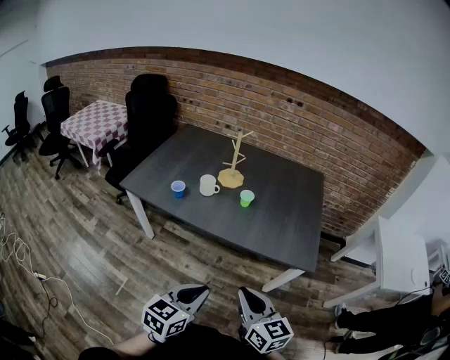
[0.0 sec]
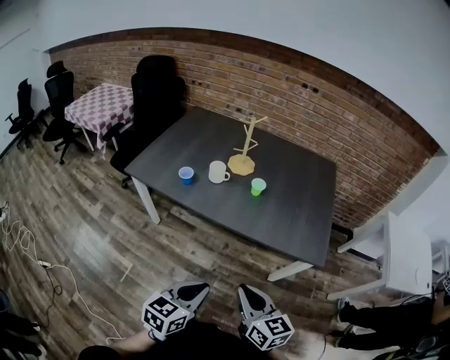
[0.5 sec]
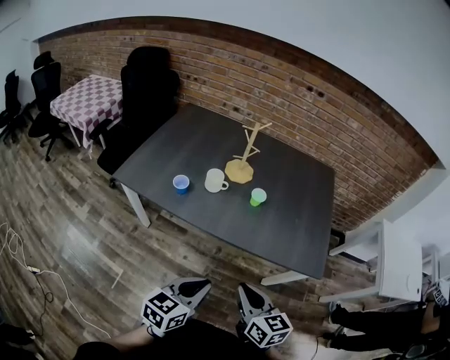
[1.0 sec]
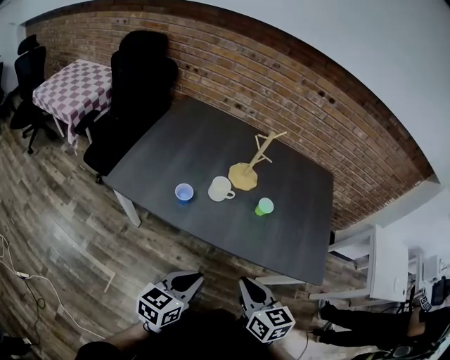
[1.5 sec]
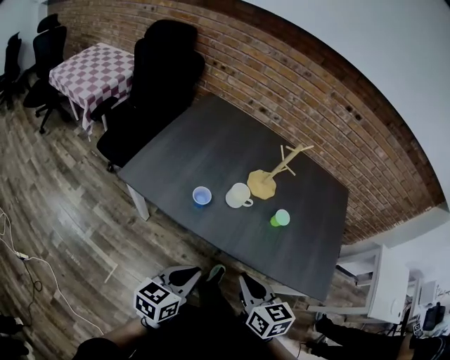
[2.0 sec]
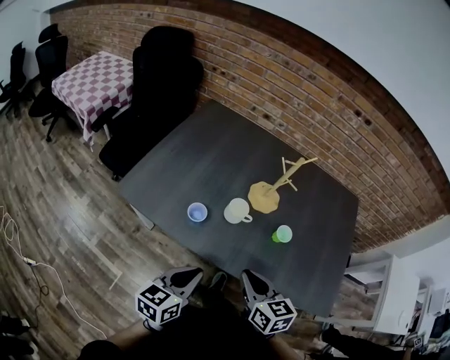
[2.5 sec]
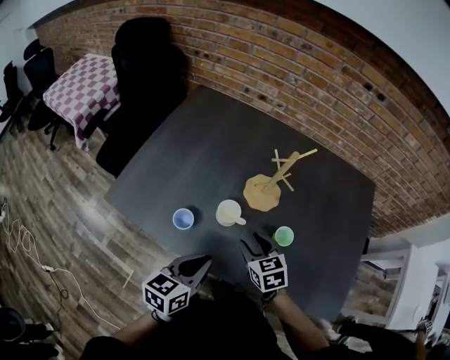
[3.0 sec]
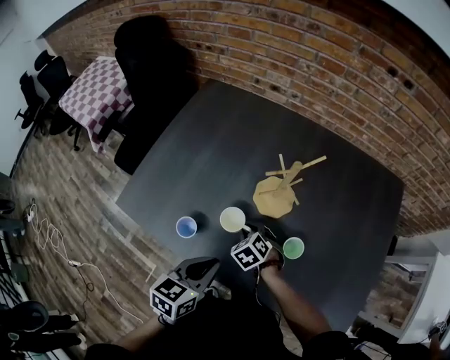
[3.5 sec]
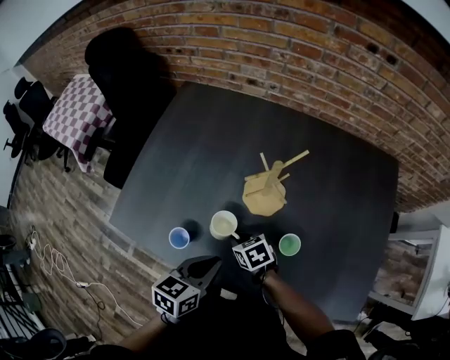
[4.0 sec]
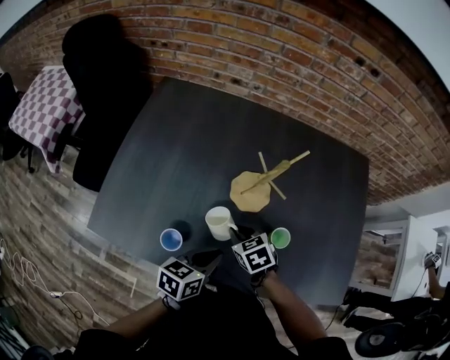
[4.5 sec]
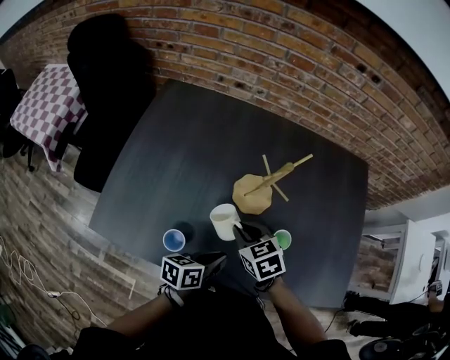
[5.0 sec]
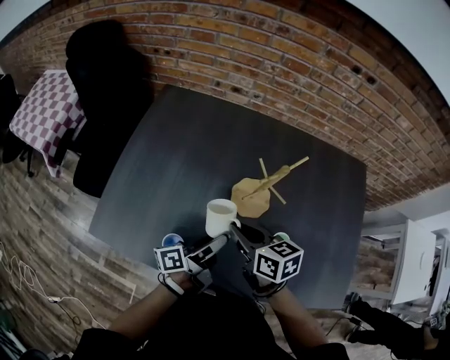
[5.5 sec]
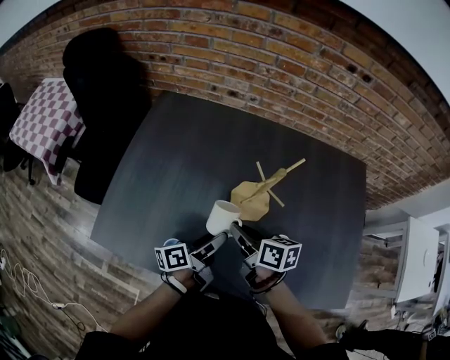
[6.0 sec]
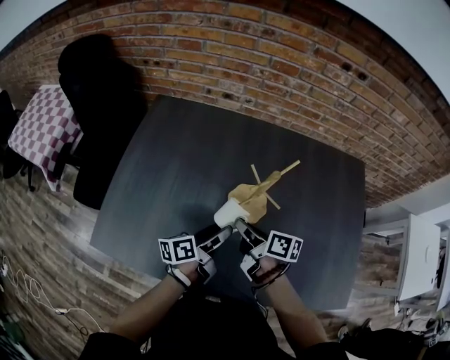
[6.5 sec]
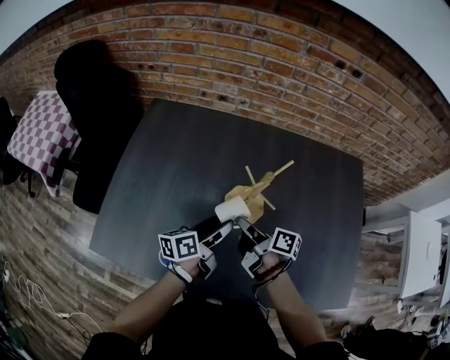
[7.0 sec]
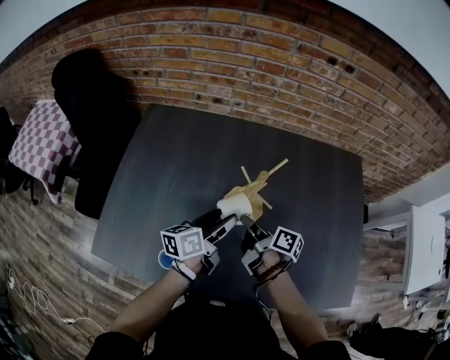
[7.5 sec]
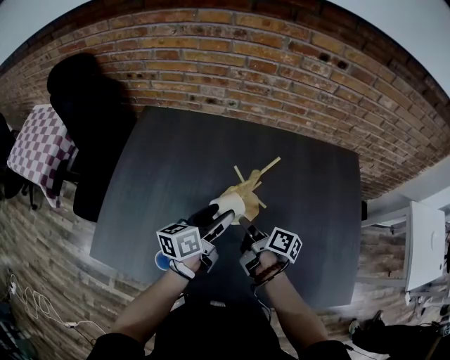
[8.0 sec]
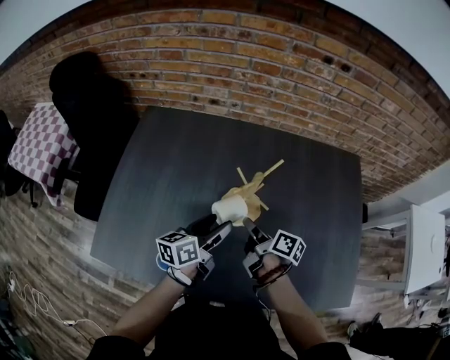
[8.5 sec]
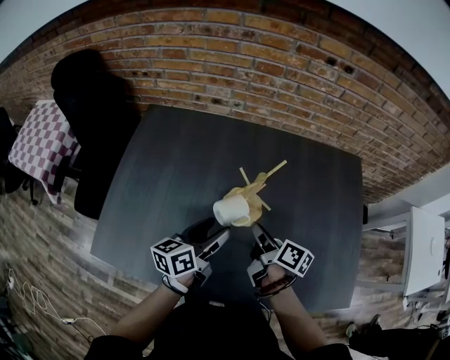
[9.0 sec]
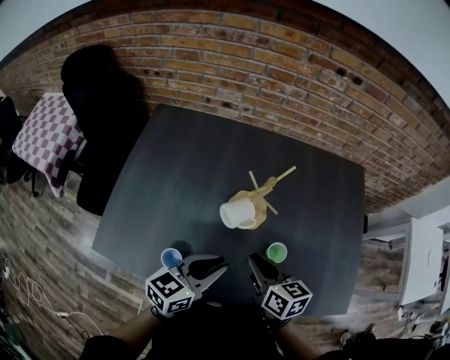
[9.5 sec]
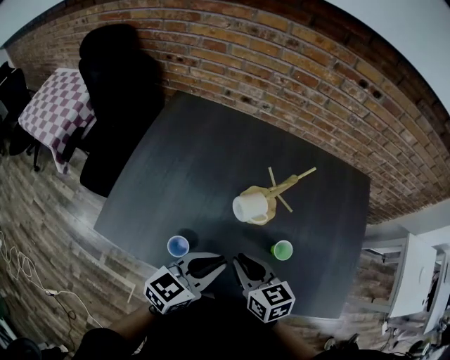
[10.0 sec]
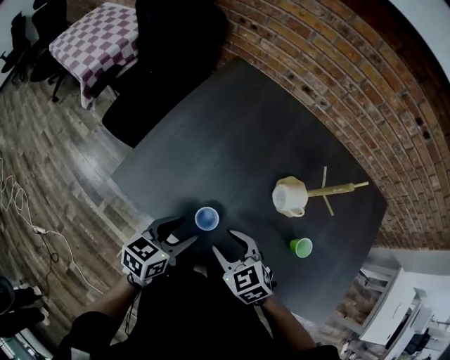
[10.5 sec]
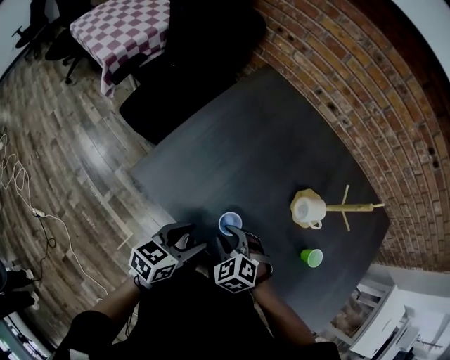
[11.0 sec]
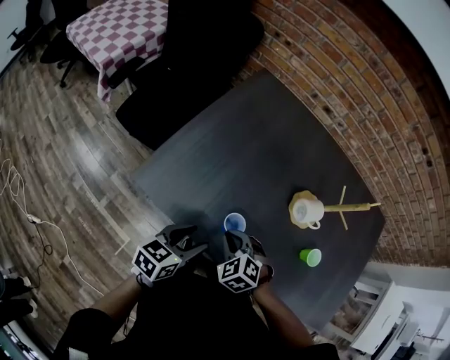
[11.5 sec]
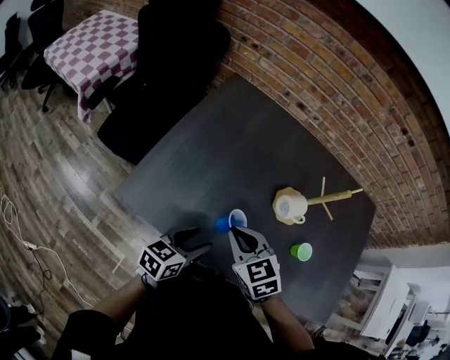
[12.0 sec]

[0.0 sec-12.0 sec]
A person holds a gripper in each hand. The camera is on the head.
0.0 sec to 2.0 sec: The right gripper heads forward and to the left, covering some 35 cm, while the left gripper goes roughly 35 cm to the left and forward.
2.0 sec to 4.0 sec: The right gripper shifts some 40 cm forward and downward, swivels roughly 30 degrees, and opens, then closes again. The left gripper is displaced forward and to the right by about 30 cm.
4.0 sec to 6.0 sec: The left gripper is displaced forward by about 10 cm, angles its fingers upward, by approximately 30 degrees, and opens up; the right gripper travels upward by about 15 cm, and turns by roughly 40 degrees.
6.0 sec to 8.0 sec: The left gripper is displaced forward, upward and to the right by roughly 10 cm, and turns by about 30 degrees. Meanwhile the right gripper heads to the right, covering roughly 10 cm, and swivels roughly 30 degrees.
8.0 sec to 10.0 sec: The right gripper heads backward, upward and to the left, covering approximately 20 cm, and twists some 60 degrees counterclockwise, seen from behind, while the left gripper travels backward by some 15 cm, changes its angle by approximately 30 degrees, and closes up.
10.0 sec to 12.0 sec: The left gripper heads to the left and downward, covering roughly 25 cm, turns by approximately 20 degrees, and opens up. Meanwhile the right gripper is displaced to the left by about 20 cm, changes its angle by approximately 30 degrees, and opens and closes again.

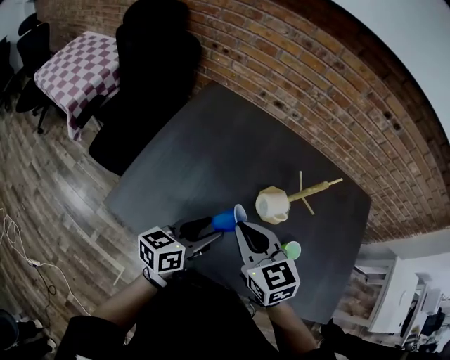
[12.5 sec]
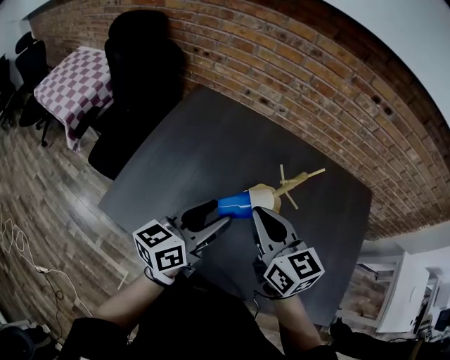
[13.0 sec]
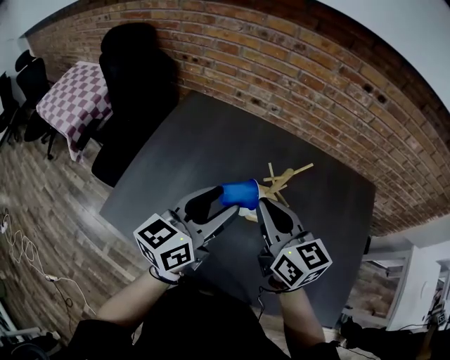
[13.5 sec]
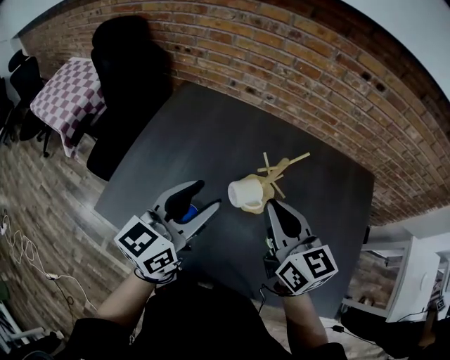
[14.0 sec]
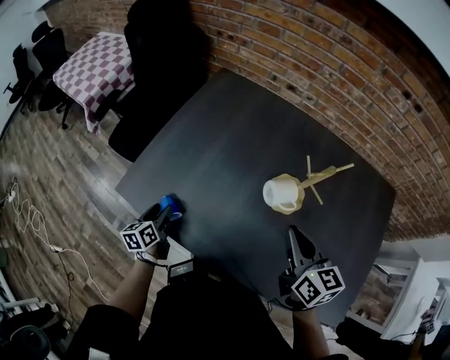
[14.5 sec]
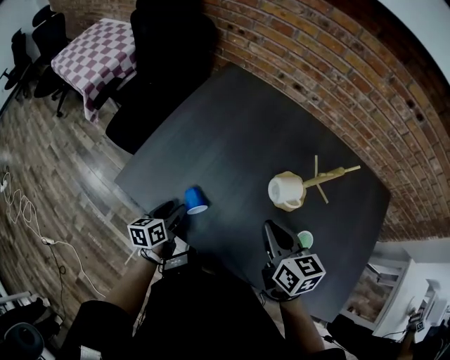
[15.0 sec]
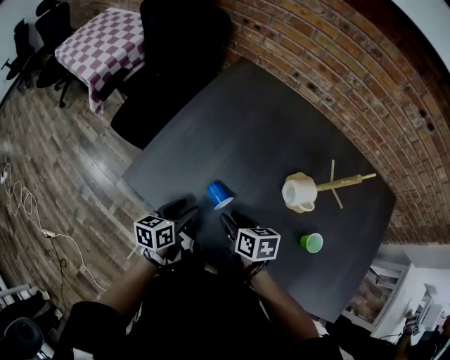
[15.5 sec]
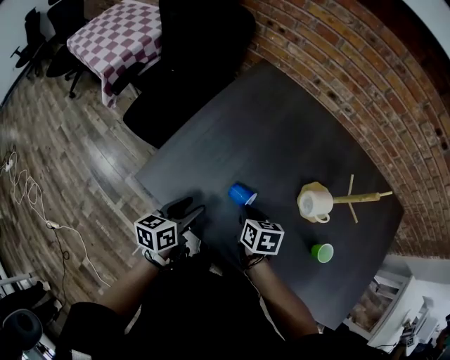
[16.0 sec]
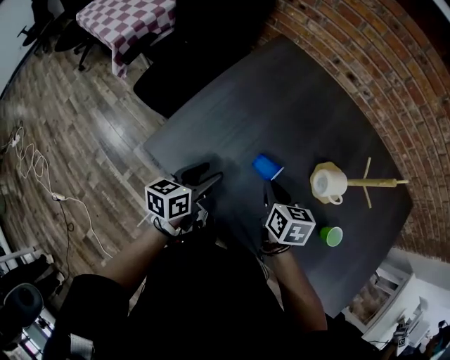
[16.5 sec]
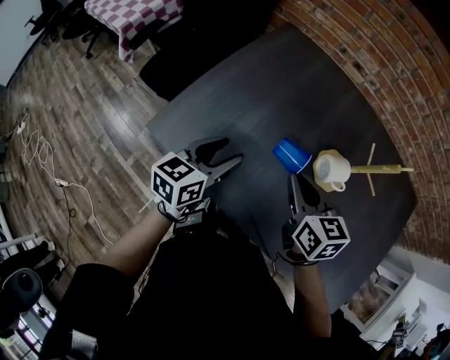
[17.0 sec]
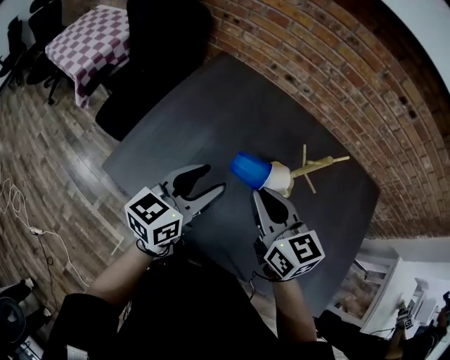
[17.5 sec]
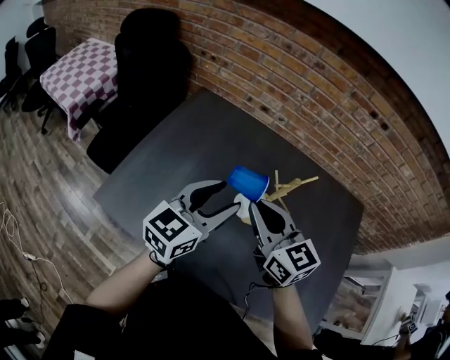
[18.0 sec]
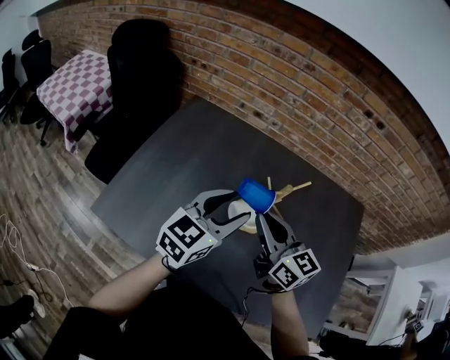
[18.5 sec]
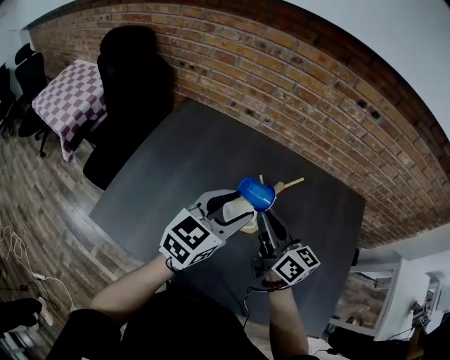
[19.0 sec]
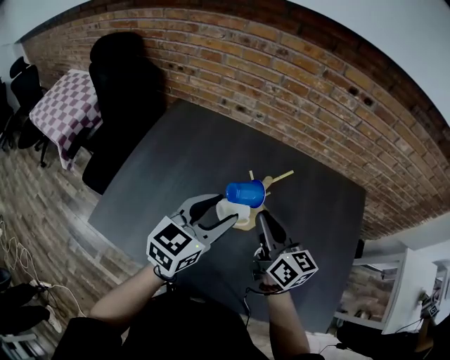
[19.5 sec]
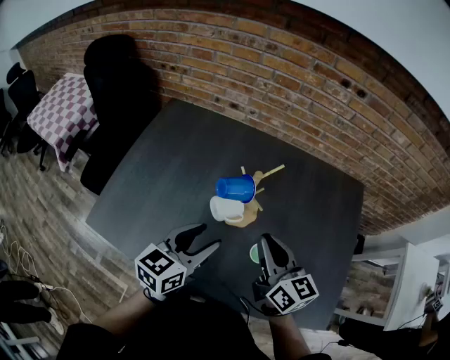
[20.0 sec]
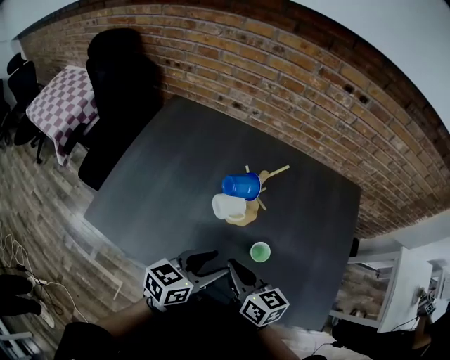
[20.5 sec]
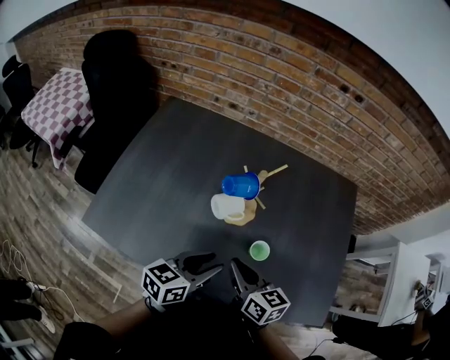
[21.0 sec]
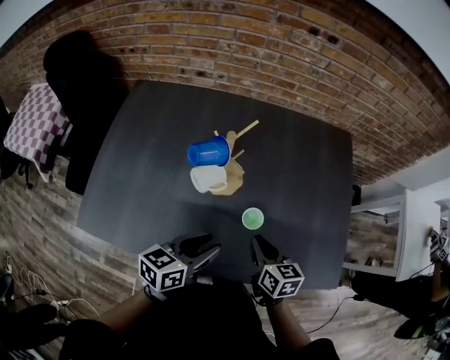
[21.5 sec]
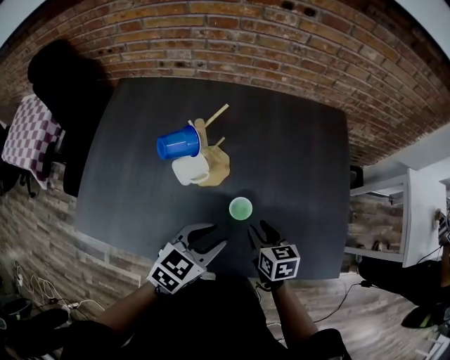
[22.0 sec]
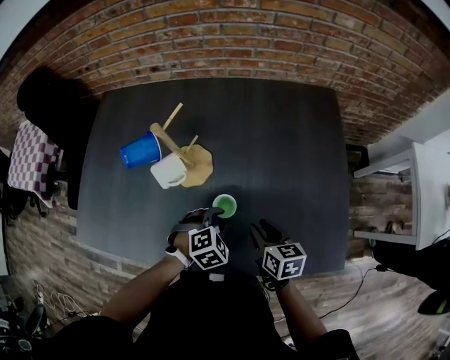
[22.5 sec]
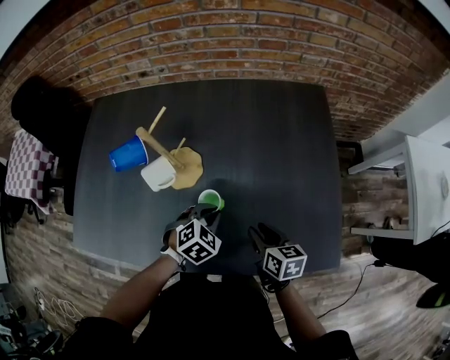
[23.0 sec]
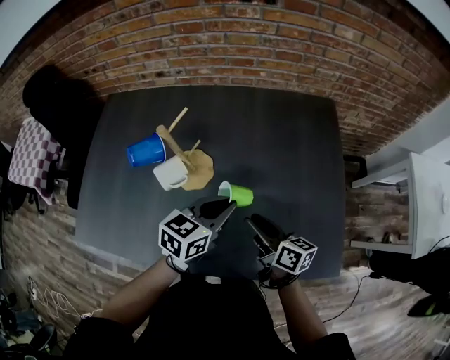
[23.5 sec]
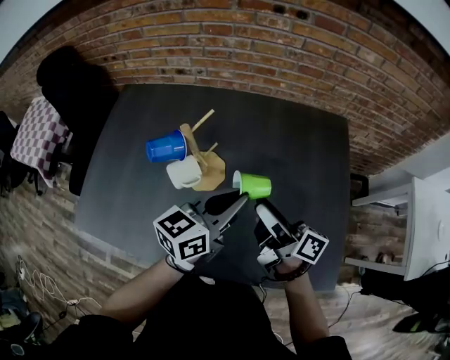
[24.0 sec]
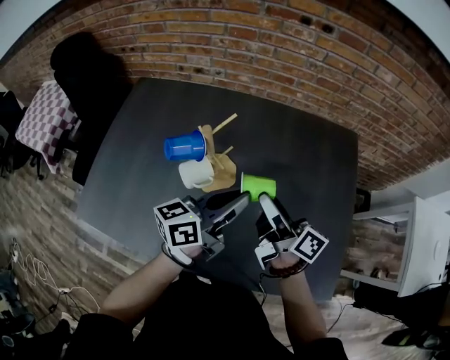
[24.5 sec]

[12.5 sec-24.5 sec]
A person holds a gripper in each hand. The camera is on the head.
12.5 sec to 14.5 sec: The right gripper moves to the right, roughly 20 cm, and rotates about 30 degrees. Meanwhile the left gripper shifts about 25 cm downward and to the left, and changes its angle by some 50 degrees.
14.5 sec to 16.5 sec: The left gripper heads upward, covering some 5 cm, and turns by approximately 20 degrees, while the right gripper is displaced to the left, downward and forward by approximately 25 cm, swivels roughly 20 degrees, and opens, then closes once more.
16.5 sec to 18.5 sec: The left gripper shifts some 35 cm to the right and upward, and swivels about 40 degrees, while the right gripper travels upward and to the right by some 30 cm, and points its fingers some 40 degrees further upward.
18.5 sec to 20.5 sec: The right gripper heads backward and downward, covering approximately 15 cm, and swivels about 20 degrees; the left gripper goes roughly 20 cm backward, downward and to the right, and swivels some 30 degrees.
20.5 sec to 22.5 sec: The right gripper travels to the right and downward by roughly 25 cm, turns by some 30 degrees, and opens up. Meanwhile the left gripper heads downward and to the right, covering roughly 25 cm, and tilts its fingers about 50 degrees downward.
22.5 sec to 24.5 sec: The right gripper moves upward and forward, about 20 cm, tilts its fingers approximately 40 degrees upward, and opens. The left gripper goes roughly 20 cm upward, and tilts its fingers some 70 degrees upward.

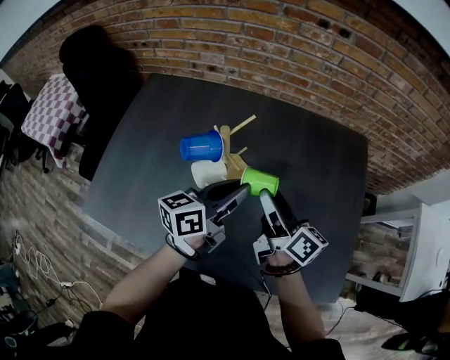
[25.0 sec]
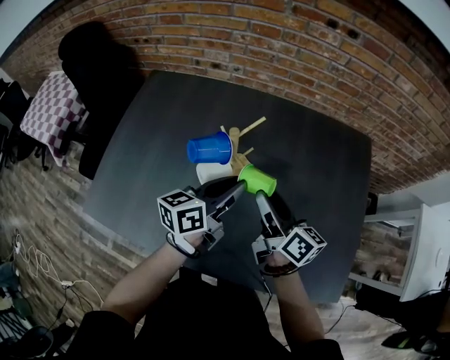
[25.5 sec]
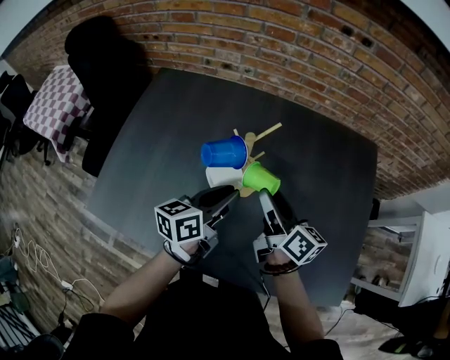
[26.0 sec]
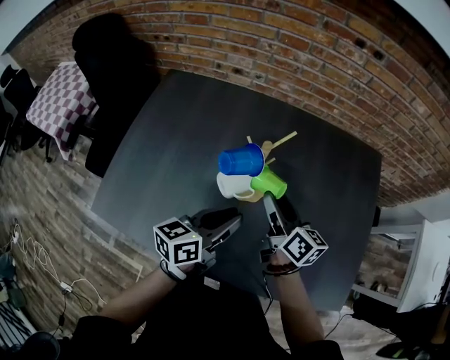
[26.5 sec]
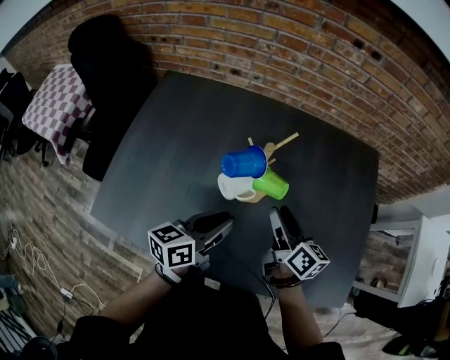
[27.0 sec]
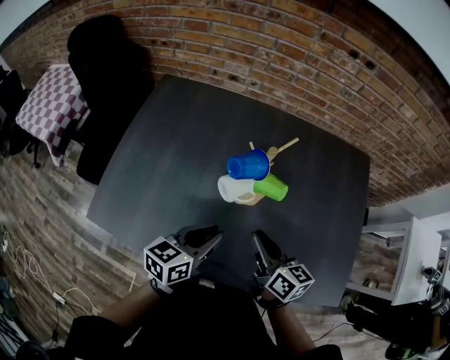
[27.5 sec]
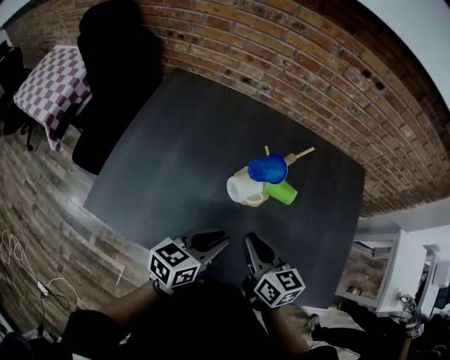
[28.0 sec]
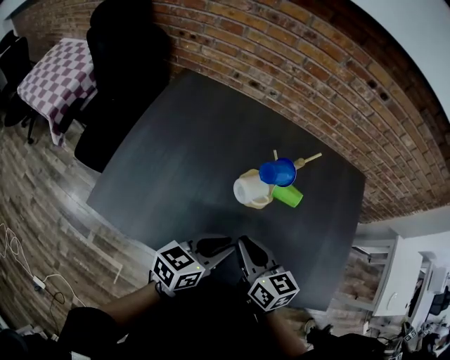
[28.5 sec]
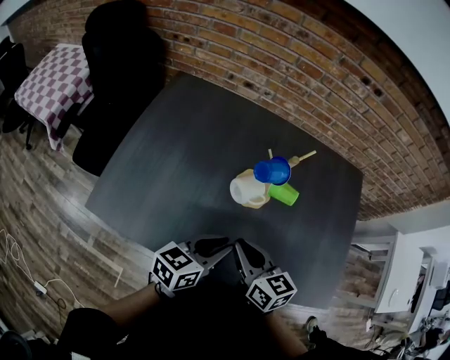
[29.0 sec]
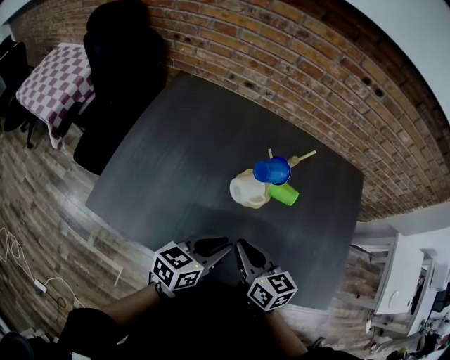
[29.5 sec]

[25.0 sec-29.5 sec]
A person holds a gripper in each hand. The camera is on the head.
25.0 sec to 27.0 sec: The left gripper moves to the left and backward, approximately 15 cm. The right gripper shifts about 5 cm to the left.
27.0 sec to 29.5 sec: The right gripper is displaced backward and to the left by roughly 20 cm, swivels some 30 degrees, and closes; the left gripper travels backward by approximately 10 cm.
